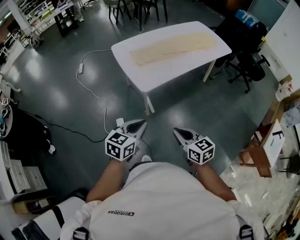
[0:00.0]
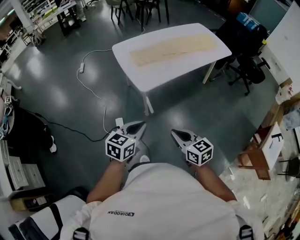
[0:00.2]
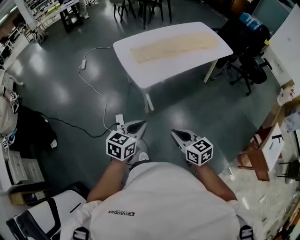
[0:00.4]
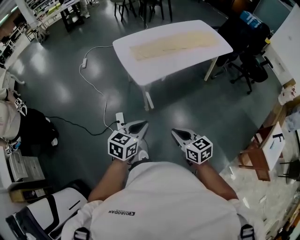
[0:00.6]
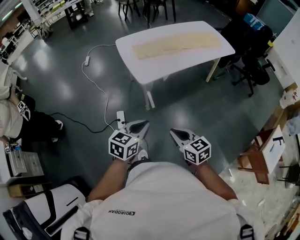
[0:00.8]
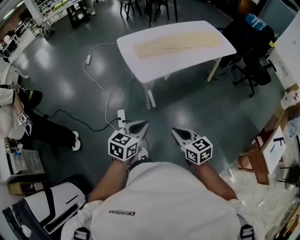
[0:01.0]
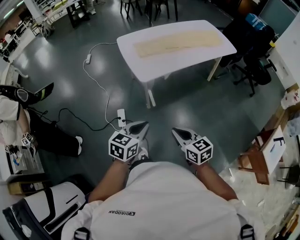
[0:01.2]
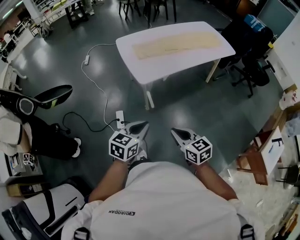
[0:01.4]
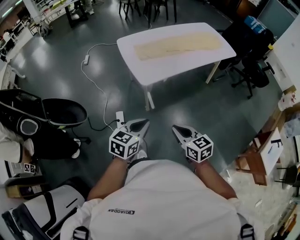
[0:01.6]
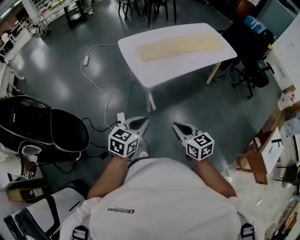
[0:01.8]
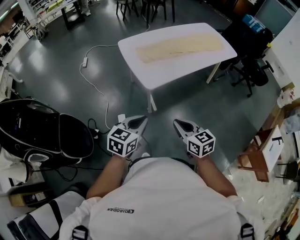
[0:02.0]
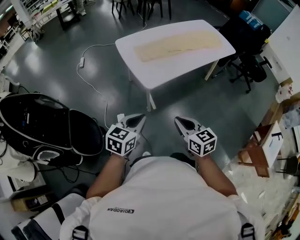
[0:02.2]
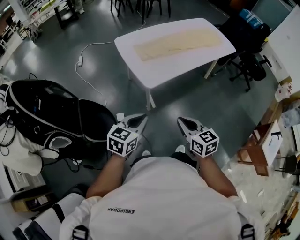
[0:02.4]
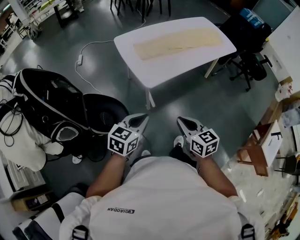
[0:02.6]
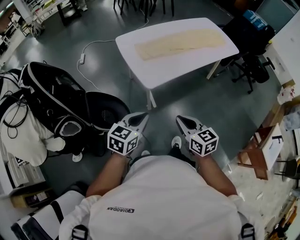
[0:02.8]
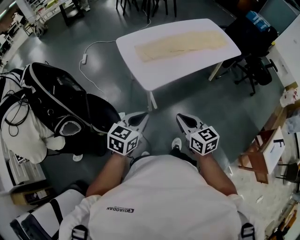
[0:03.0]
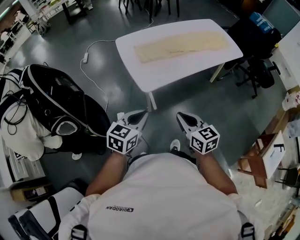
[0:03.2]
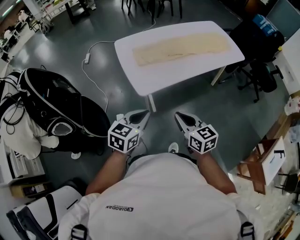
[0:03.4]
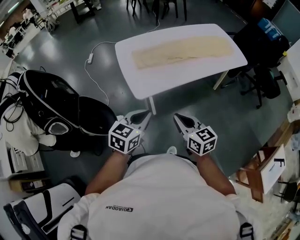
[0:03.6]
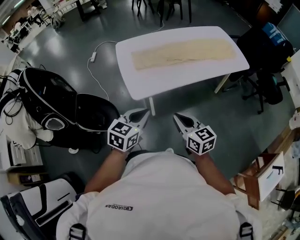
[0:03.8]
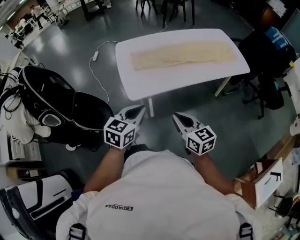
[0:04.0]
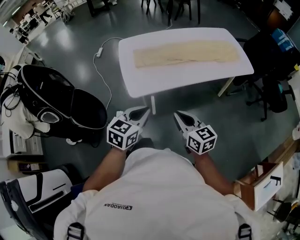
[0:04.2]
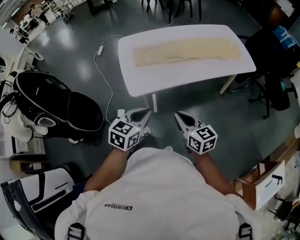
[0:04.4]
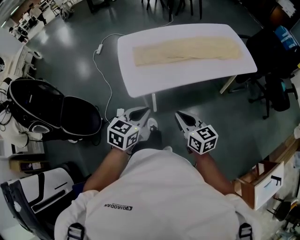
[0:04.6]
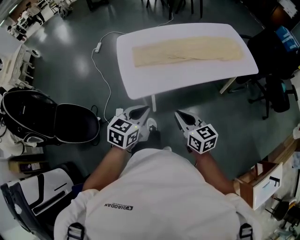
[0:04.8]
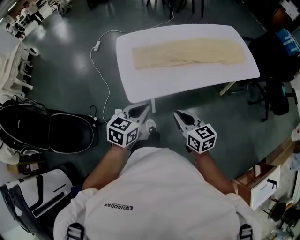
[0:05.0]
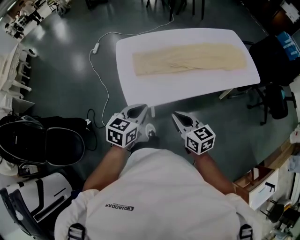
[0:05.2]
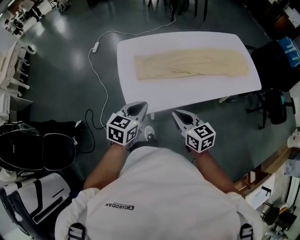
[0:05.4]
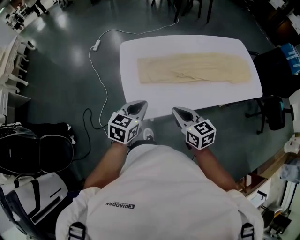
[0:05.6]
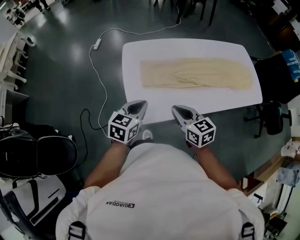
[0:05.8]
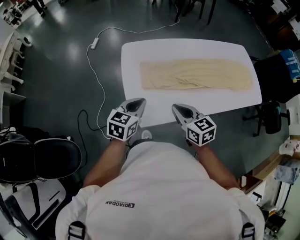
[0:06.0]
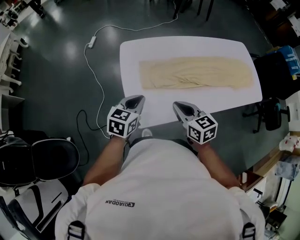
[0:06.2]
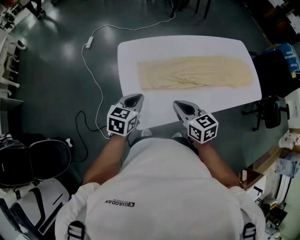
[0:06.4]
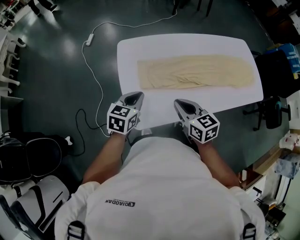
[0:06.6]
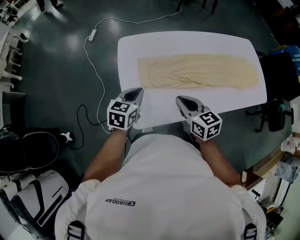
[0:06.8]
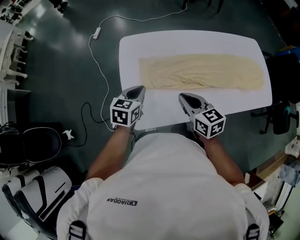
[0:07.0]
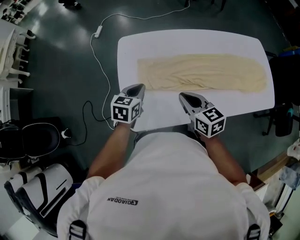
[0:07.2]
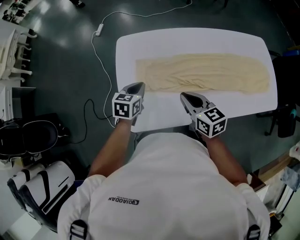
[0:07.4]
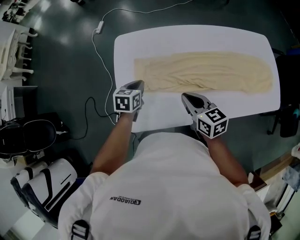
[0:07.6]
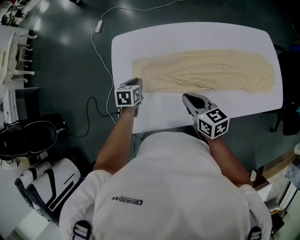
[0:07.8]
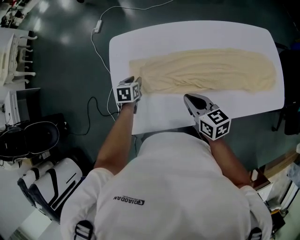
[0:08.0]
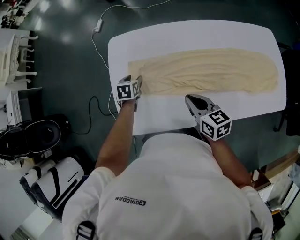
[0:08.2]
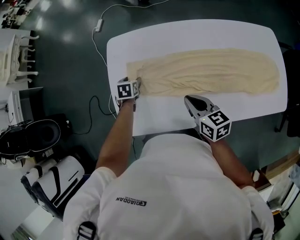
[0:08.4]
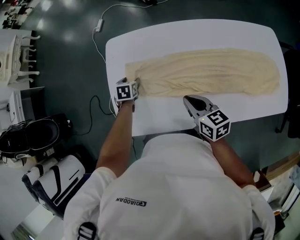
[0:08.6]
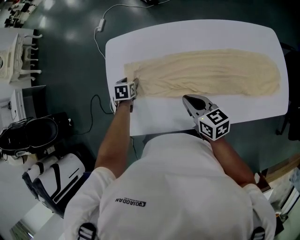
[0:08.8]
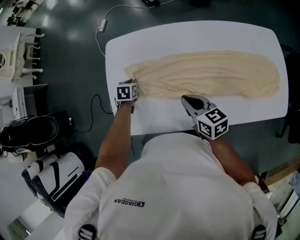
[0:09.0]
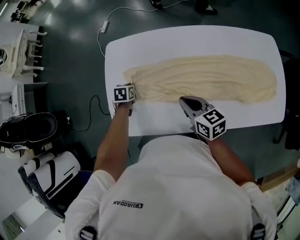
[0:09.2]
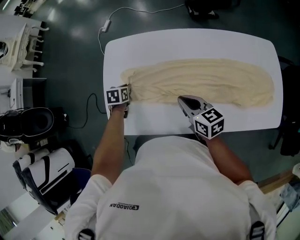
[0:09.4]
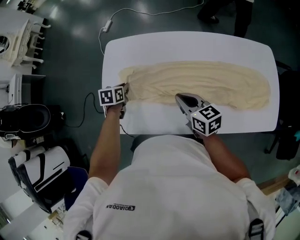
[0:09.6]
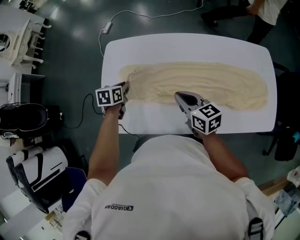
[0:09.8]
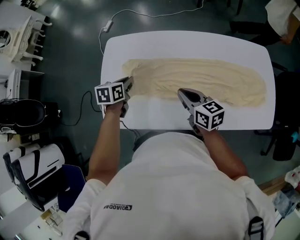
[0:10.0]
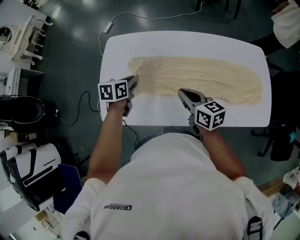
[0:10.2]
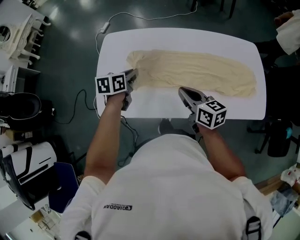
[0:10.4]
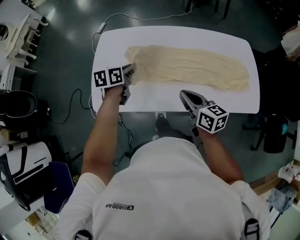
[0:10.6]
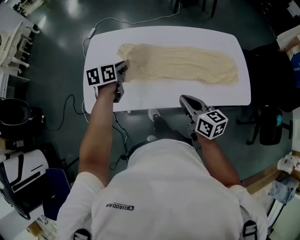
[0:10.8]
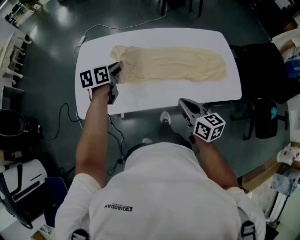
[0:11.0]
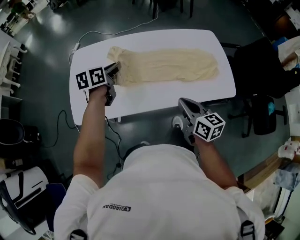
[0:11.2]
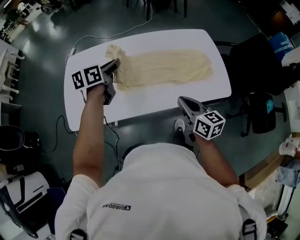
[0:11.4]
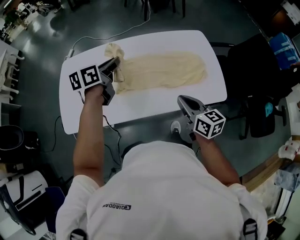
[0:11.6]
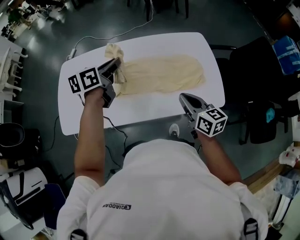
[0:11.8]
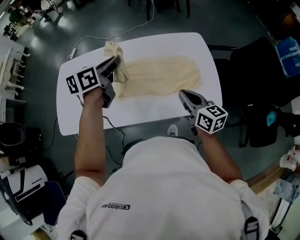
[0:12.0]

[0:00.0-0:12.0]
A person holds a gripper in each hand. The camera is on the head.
0:01.6 to 0:03.0: Both grippers move forward, about 10 cm.
0:03.0 to 0:04.4: Both grippers move to the right and forward, approximately 25 cm.
0:04.4 to 0:06.0: Both grippers travel together forward and to the left, approximately 30 cm.
0:06.0 to 0:07.6: The left gripper moves forward, downward and to the right, some 25 cm, and swivels roughly 20 degrees, while the right gripper heads forward and to the right, covering roughly 20 cm.
0:07.6 to 0:09.0: The right gripper goes about 10 cm to the right, while the left gripper goes roughly 10 cm downward, changes its angle by some 20 degrees, and opens, then closes once more.
0:09.0 to 0:10.4: The left gripper travels upward, backward and to the right by about 25 cm, and changes its angle by approximately 30 degrees; the right gripper moves backward, to the right and upward, roughly 15 cm.
0:10.4 to 0:12.0: The left gripper is displaced to the right and upward by about 40 cm. The right gripper shifts approximately 40 cm to the right.

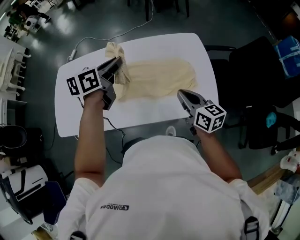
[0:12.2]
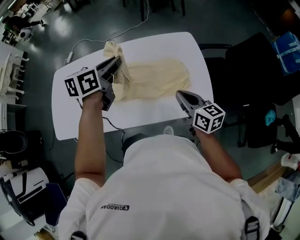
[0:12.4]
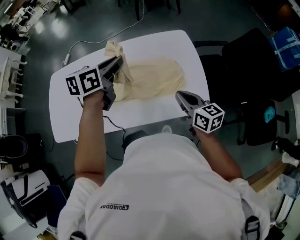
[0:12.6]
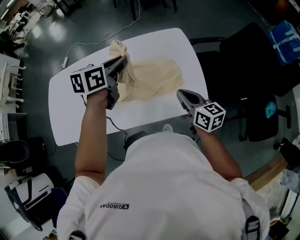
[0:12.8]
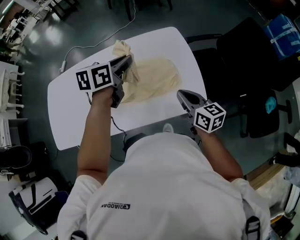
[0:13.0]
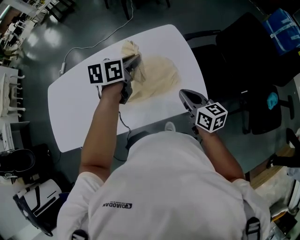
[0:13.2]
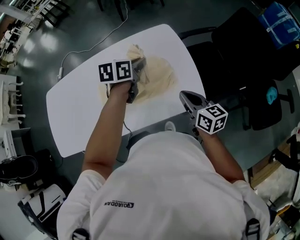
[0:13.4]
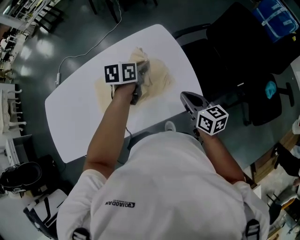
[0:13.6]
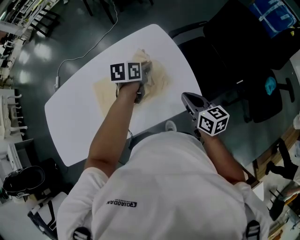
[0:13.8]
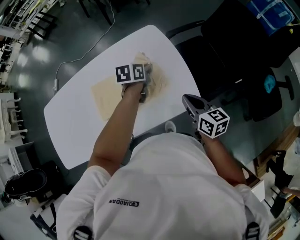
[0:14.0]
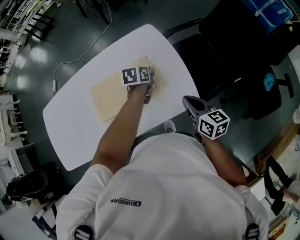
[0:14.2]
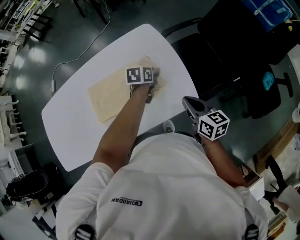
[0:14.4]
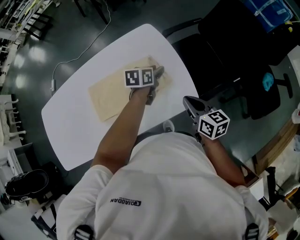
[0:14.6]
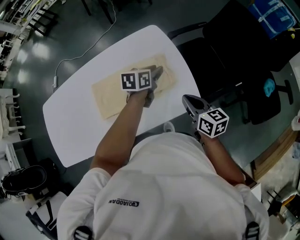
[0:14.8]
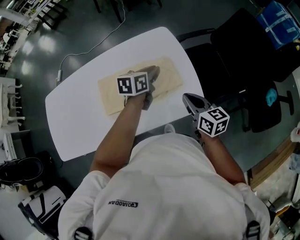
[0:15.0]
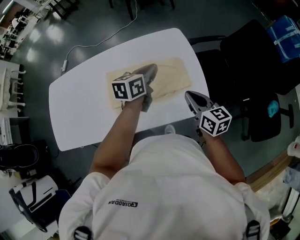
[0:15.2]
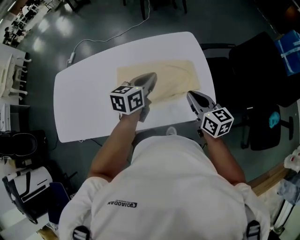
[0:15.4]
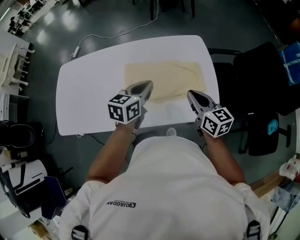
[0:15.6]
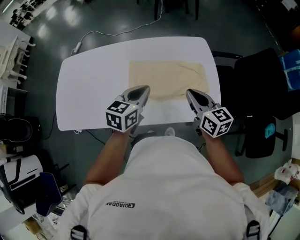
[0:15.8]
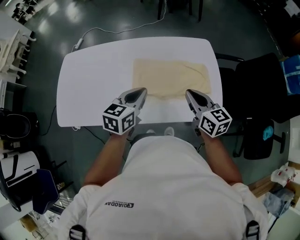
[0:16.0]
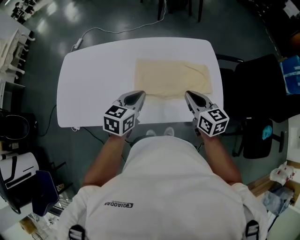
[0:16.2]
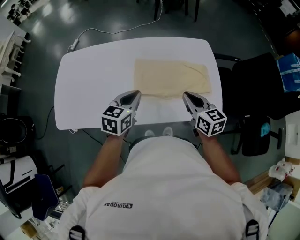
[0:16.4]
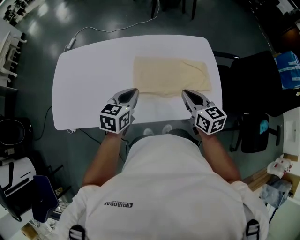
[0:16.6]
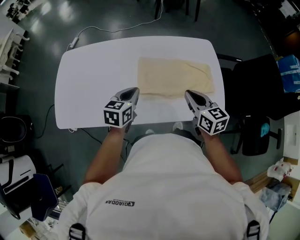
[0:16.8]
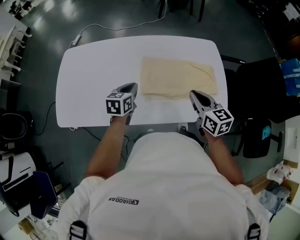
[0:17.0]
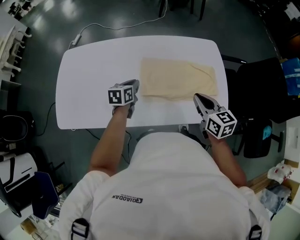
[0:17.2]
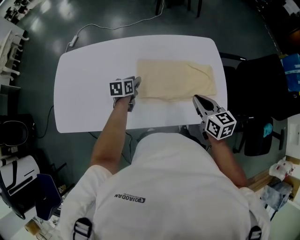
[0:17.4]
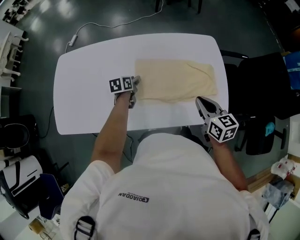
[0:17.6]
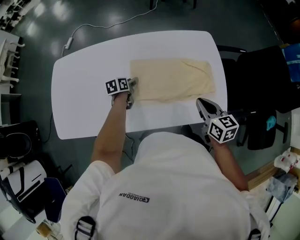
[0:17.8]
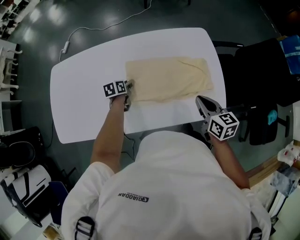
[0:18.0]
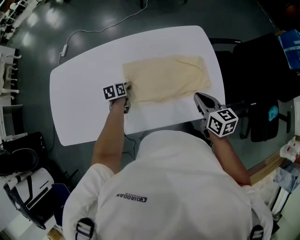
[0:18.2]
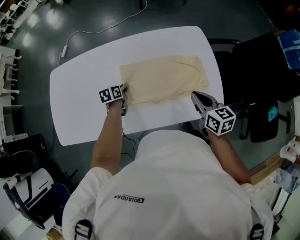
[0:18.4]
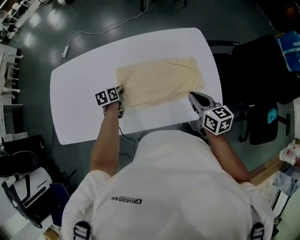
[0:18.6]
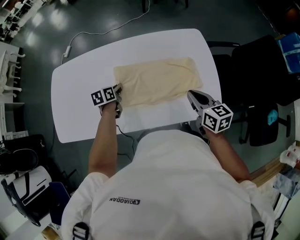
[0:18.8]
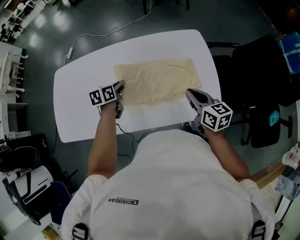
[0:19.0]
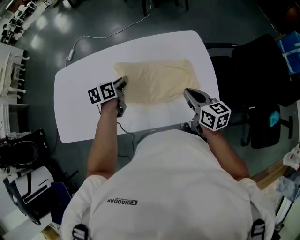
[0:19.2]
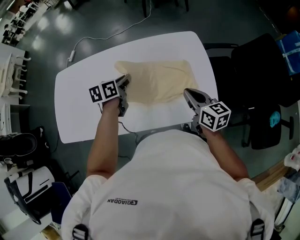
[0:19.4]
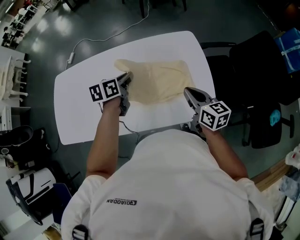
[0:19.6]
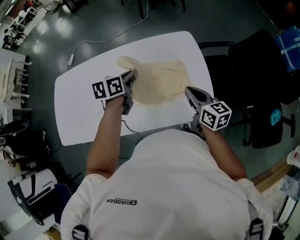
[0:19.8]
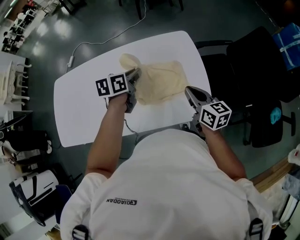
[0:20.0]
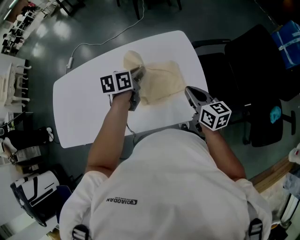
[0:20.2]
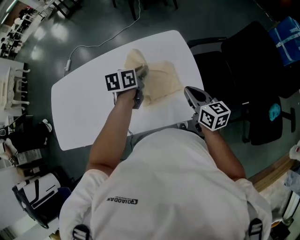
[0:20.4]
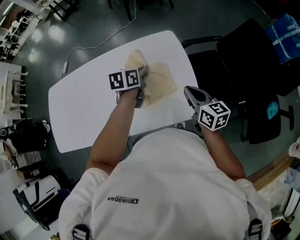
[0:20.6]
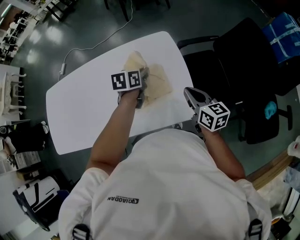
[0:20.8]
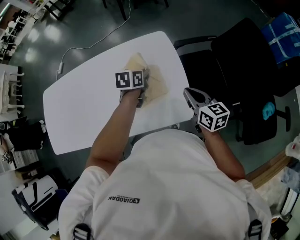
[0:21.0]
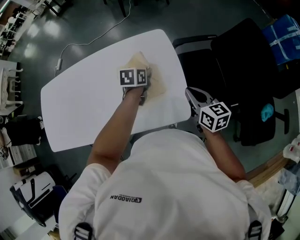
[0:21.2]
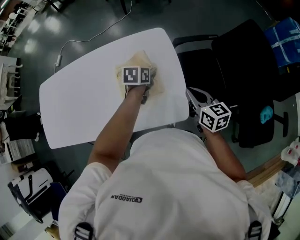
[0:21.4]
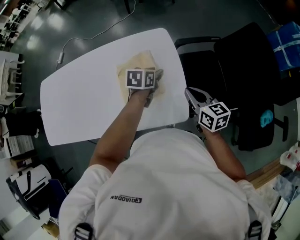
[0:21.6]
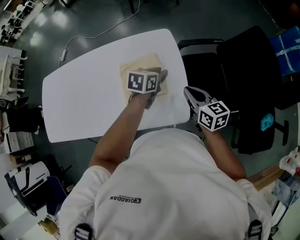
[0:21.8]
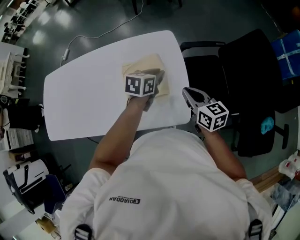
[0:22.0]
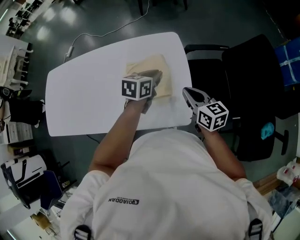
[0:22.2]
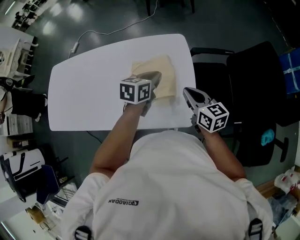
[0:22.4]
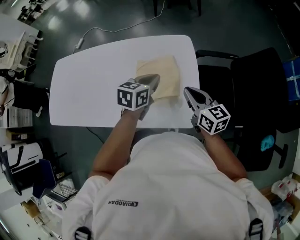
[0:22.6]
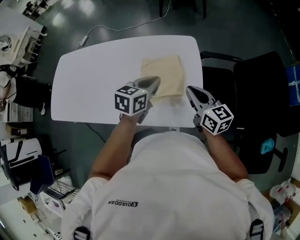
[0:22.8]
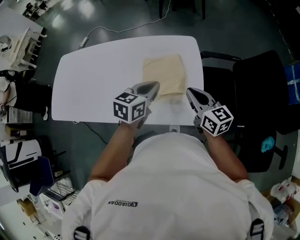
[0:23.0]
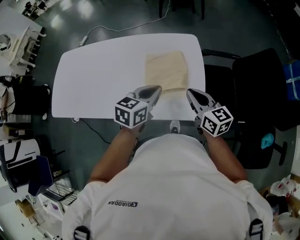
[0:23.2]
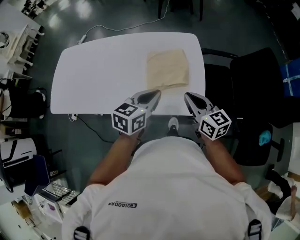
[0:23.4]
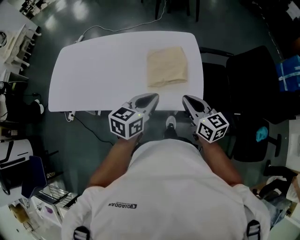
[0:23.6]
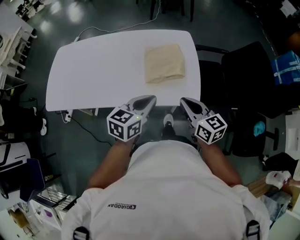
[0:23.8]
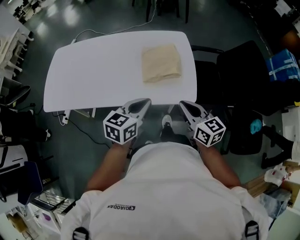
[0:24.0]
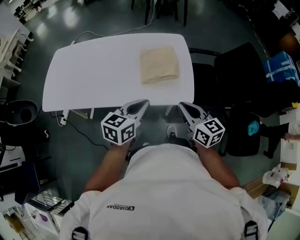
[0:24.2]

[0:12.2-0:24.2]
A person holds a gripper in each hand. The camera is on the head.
0:12.2 to 0:13.8: The right gripper goes about 20 cm to the right. Meanwhile the left gripper shifts about 35 cm to the right and downward, and swivels approximately 30 degrees.
0:13.8 to 0:15.2: The right gripper shifts by about 5 cm; the left gripper shifts some 5 cm to the left, travels downward and back again, about 10 cm each way, turns by approximately 20 degrees, and opens, then closes once more.
0:15.2 to 0:16.6: The left gripper heads to the left and backward, covering roughly 35 cm. The right gripper heads to the left, covering approximately 20 cm.
0:16.6 to 0:18.2: The right gripper moves to the right and downward, some 10 cm. The left gripper goes roughly 30 cm downward and forward, changes its angle by some 30 degrees, and opens, then closes again.
0:18.2 to 0:19.8: The left gripper shifts approximately 30 cm upward and to the right. The right gripper moves to the right, about 5 cm.
0:19.8 to 0:21.2: The right gripper travels to the right by some 15 cm, while the left gripper moves to the right and downward, approximately 25 cm.
0:21.2 to 0:22.6: The left gripper is displaced upward and backward by approximately 10 cm, and opens, then closes again, while the right gripper shifts some 5 cm to the left.
0:22.6 to 0:24.2: The grippers both shift backward by roughly 30 cm.
